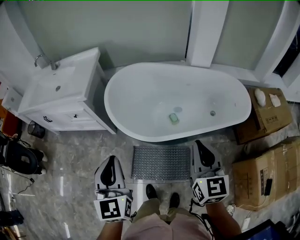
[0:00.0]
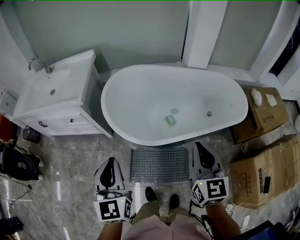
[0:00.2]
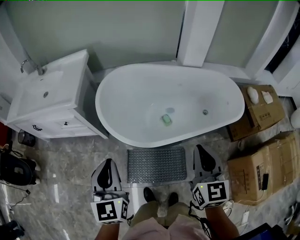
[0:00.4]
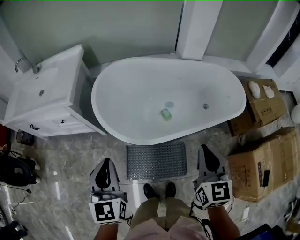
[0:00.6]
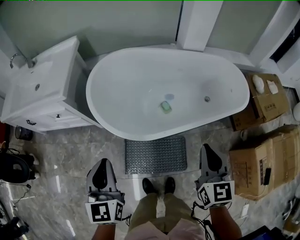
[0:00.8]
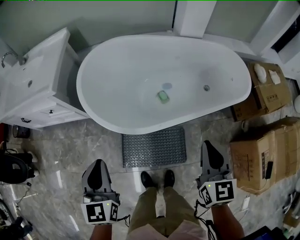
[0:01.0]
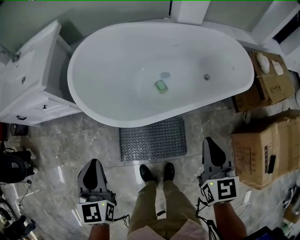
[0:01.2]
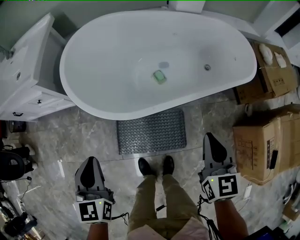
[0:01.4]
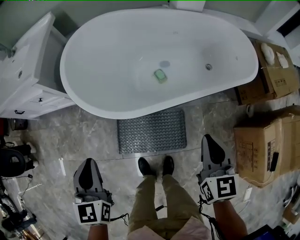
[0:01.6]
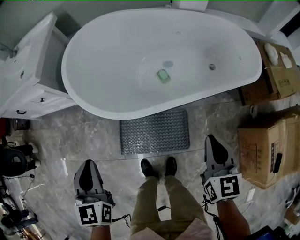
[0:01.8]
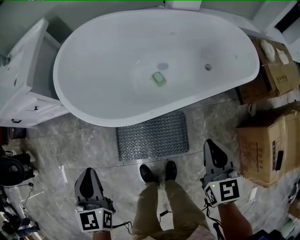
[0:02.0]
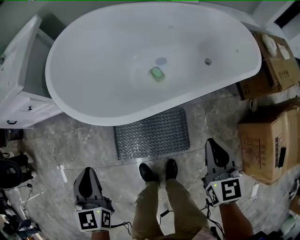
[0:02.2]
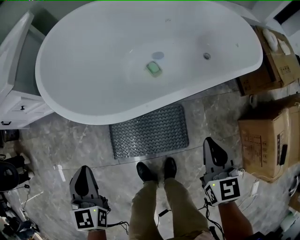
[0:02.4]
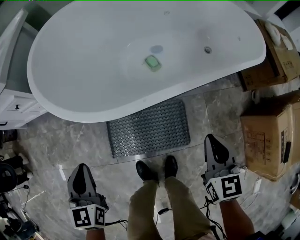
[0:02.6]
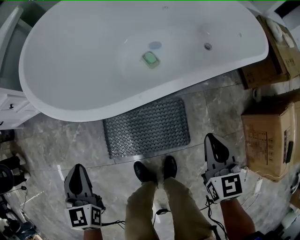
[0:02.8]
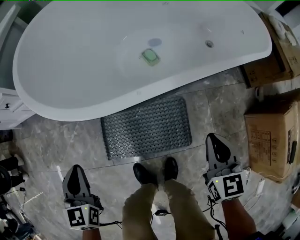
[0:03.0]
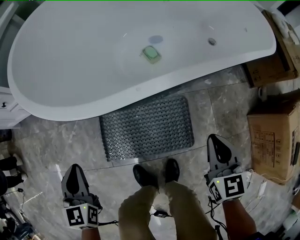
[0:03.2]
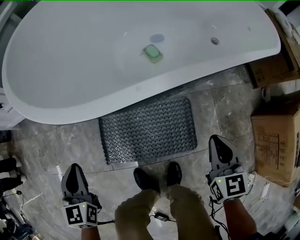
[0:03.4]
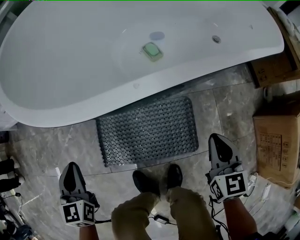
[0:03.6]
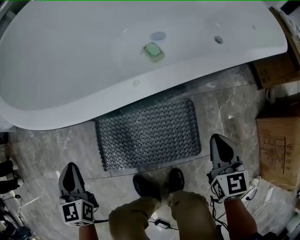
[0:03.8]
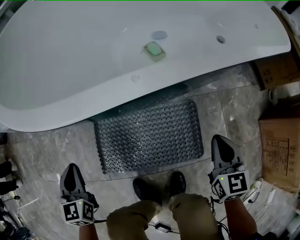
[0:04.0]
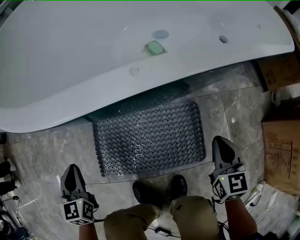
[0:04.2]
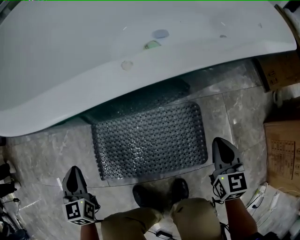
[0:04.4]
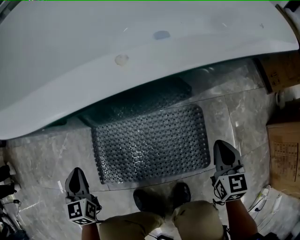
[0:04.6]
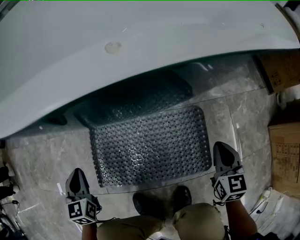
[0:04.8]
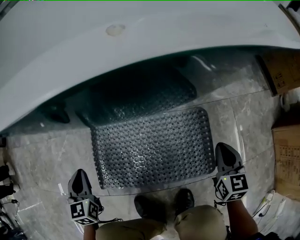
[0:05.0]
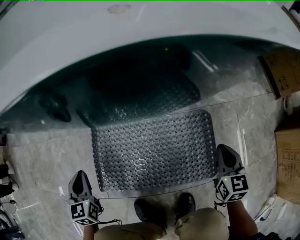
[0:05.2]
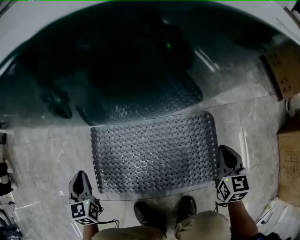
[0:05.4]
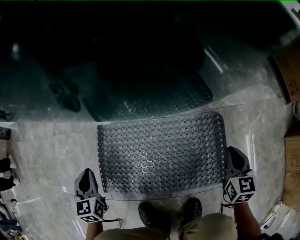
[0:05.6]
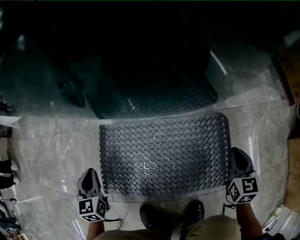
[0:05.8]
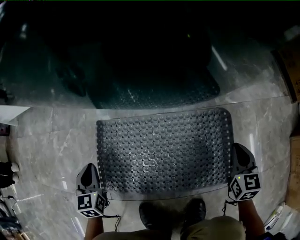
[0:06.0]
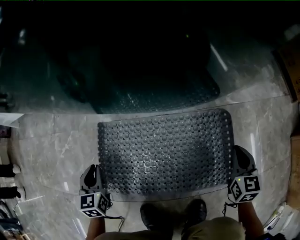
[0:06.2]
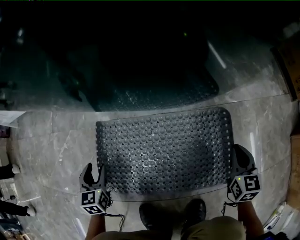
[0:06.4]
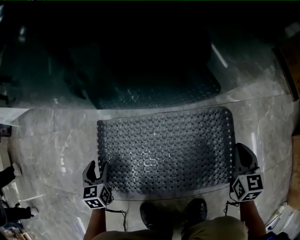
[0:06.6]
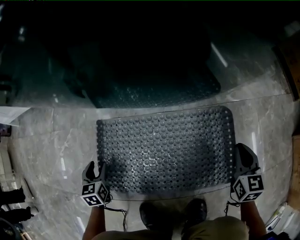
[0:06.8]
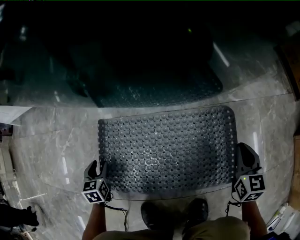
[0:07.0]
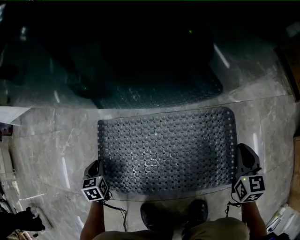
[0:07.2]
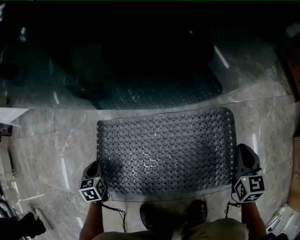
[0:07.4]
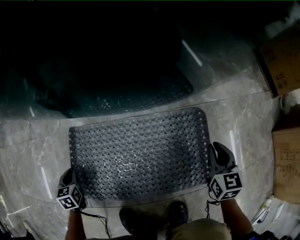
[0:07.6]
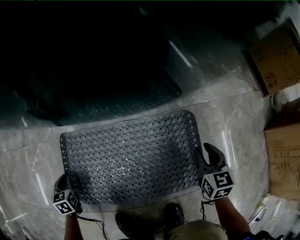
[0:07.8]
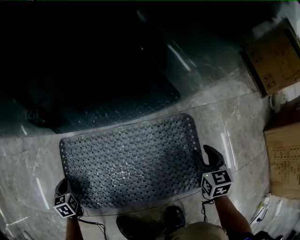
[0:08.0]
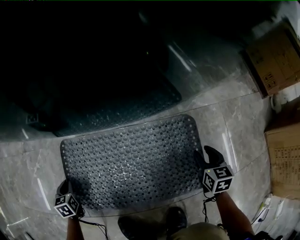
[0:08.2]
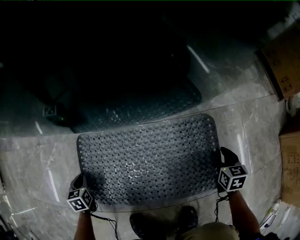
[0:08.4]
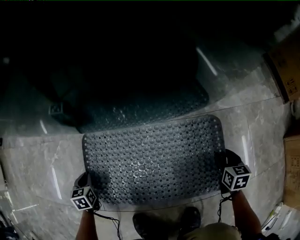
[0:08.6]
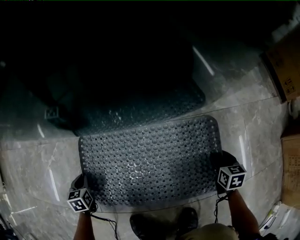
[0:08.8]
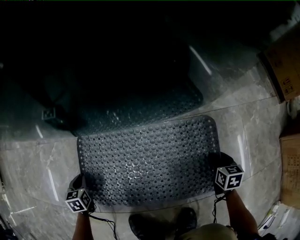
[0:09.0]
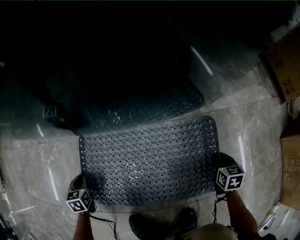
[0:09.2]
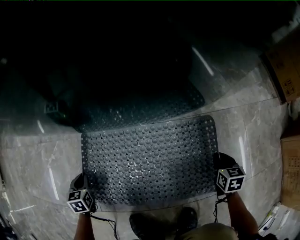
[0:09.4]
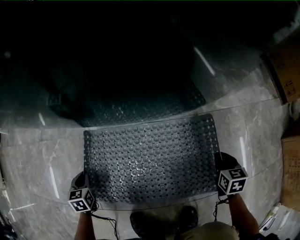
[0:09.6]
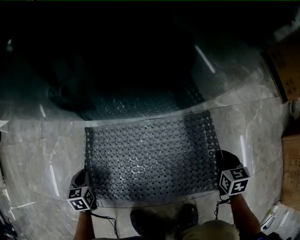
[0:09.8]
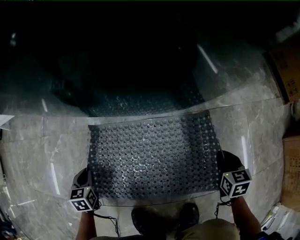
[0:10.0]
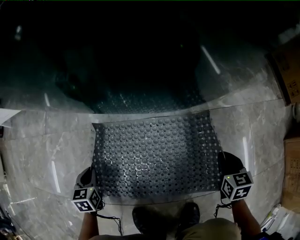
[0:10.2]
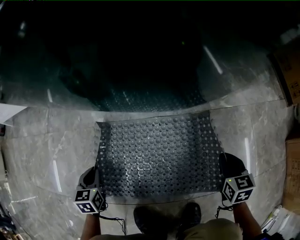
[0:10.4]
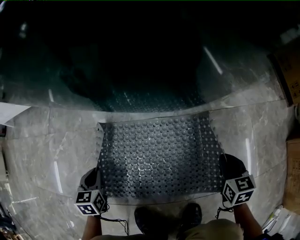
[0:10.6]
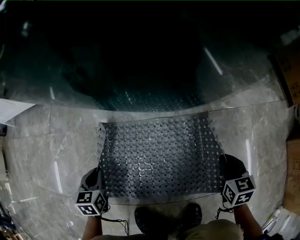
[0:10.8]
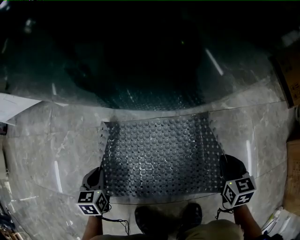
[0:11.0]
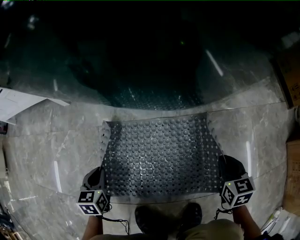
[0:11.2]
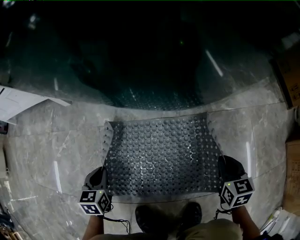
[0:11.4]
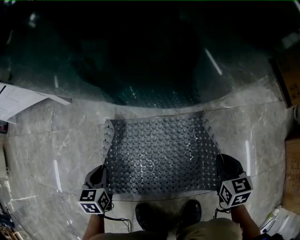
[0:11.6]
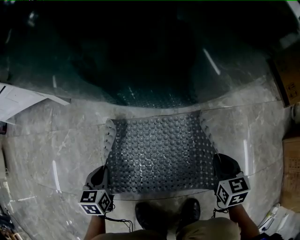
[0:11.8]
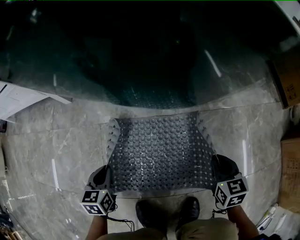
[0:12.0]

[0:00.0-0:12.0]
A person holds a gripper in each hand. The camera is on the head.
0.0 to 1.6 s: The right gripper is displaced downward and to the right by some 20 cm. The left gripper heads downward, covering approximately 20 cm.
1.6 to 3.0 s: The grippers both shift downward by approximately 25 cm.
3.0 to 4.4 s: The two grippers go about 25 cm downward.
4.4 to 6.0 s: Both grippers move downward, roughly 15 cm.
6.0 to 7.6 s: The left gripper heads downward and to the left, covering about 10 cm, and opens and closes again.
7.6 to 9.0 s: The right gripper shifts some 10 cm downward, changes its angle by roughly 20 degrees, and opens up.
9.0 to 10.4 s: The left gripper travels upward and to the right by roughly 10 cm, while the right gripper is displaced upward by approximately 10 cm, and closes its fingers.
10.4 to 12.0 s: The left gripper shifts by about 5 cm; the right gripper is displaced upward by some 5 cm.

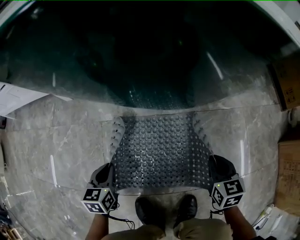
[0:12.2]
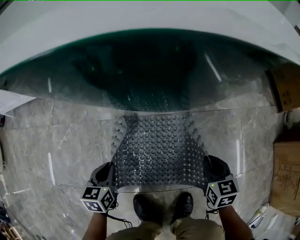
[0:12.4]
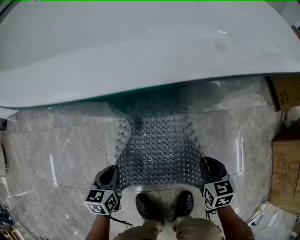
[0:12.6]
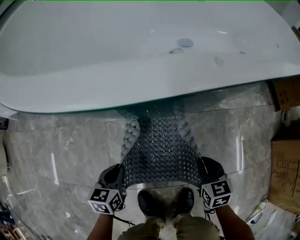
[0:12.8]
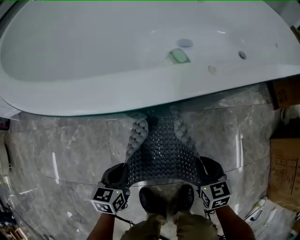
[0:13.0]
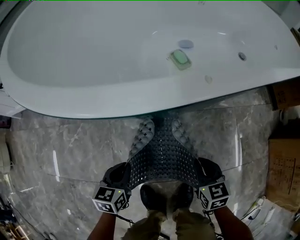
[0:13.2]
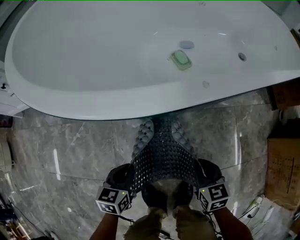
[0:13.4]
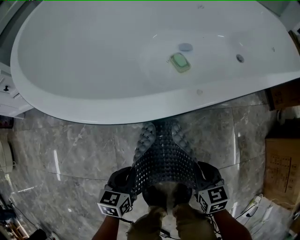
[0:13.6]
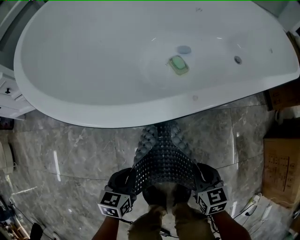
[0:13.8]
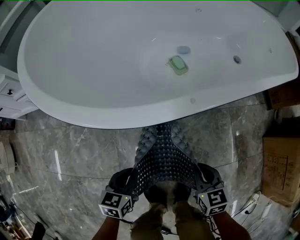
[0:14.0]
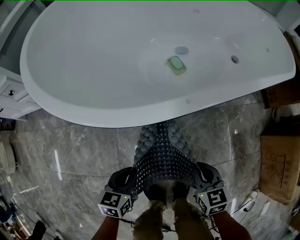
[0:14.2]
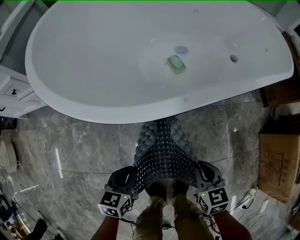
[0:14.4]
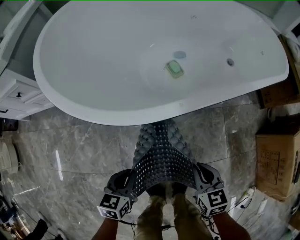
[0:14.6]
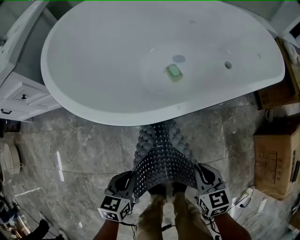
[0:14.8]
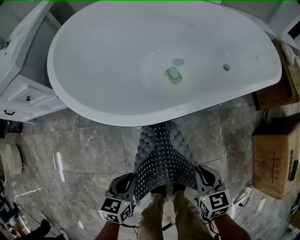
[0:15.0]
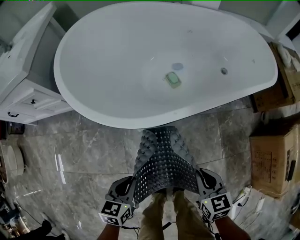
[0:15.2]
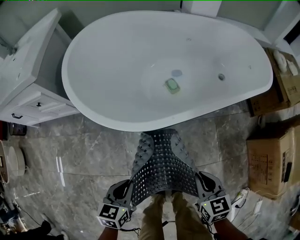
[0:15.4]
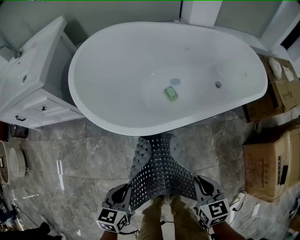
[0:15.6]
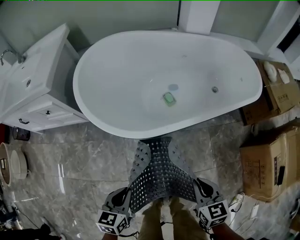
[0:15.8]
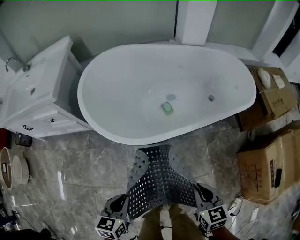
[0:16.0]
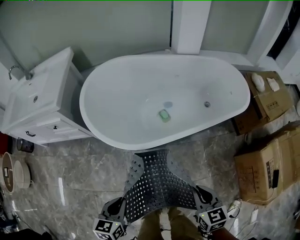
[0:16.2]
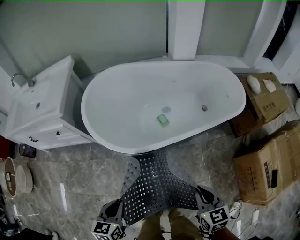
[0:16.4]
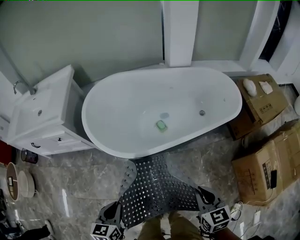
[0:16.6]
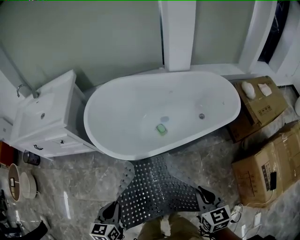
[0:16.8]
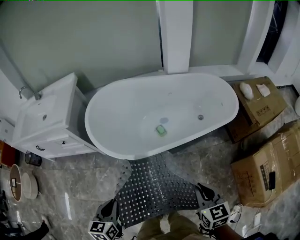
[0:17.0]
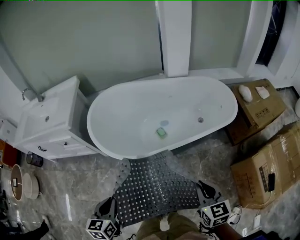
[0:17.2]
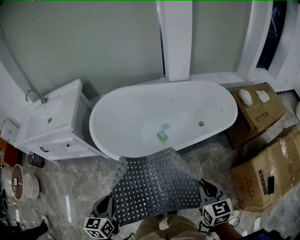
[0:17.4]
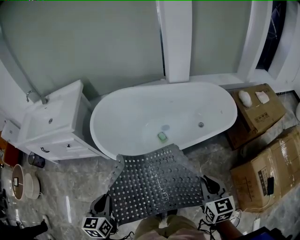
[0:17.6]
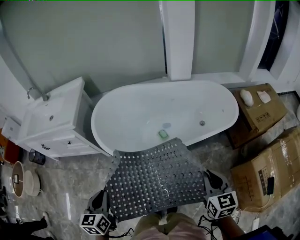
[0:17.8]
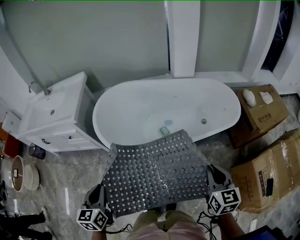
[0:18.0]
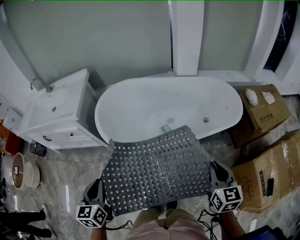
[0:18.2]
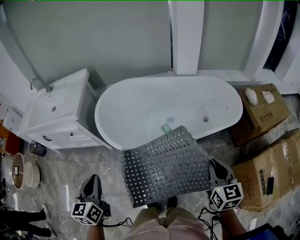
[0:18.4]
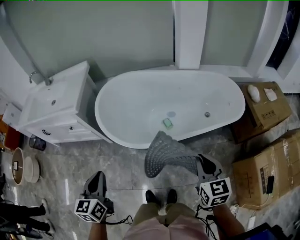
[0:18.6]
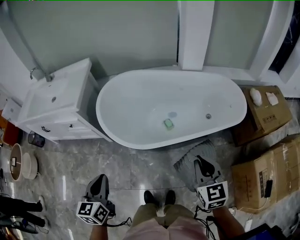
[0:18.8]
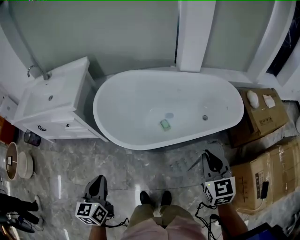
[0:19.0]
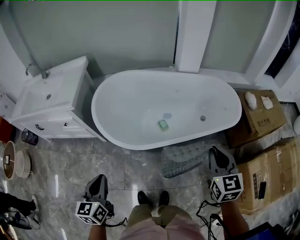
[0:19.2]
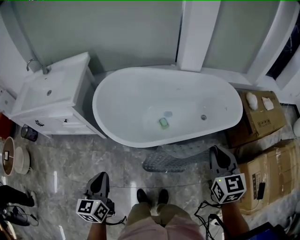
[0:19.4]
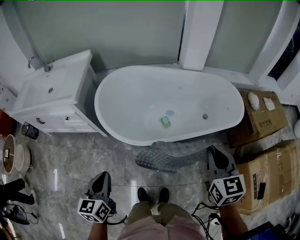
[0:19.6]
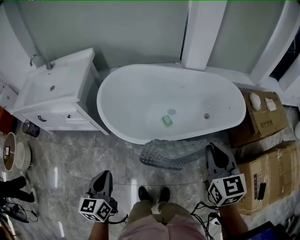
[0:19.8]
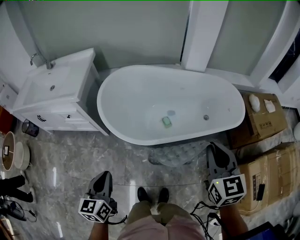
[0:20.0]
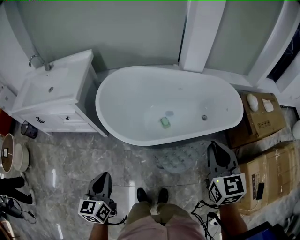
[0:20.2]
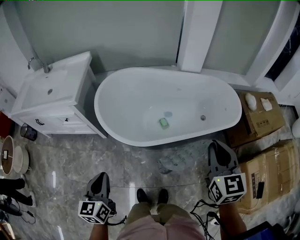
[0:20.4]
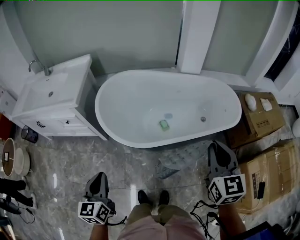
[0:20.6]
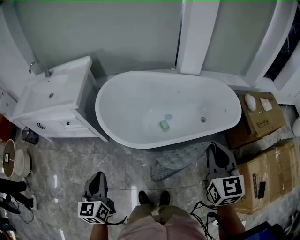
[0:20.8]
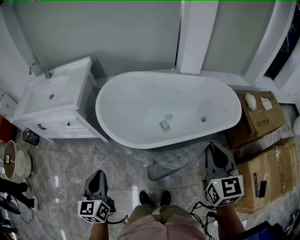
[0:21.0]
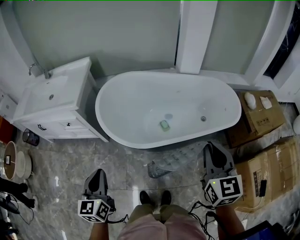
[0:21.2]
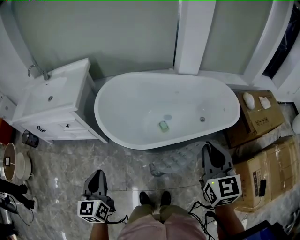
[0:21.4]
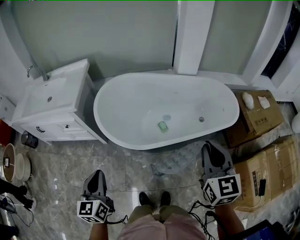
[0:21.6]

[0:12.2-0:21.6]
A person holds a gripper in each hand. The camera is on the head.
12.2 to 13.8 s: The right gripper shifts approximately 15 cm upward and to the left, while the left gripper shifts about 20 cm upward and to the right.
13.8 to 15.4 s: The two grippers go roughly 25 cm upward.
15.4 to 17.0 s: Both grippers travel together upward, about 25 cm.
17.0 to 18.4 s: The right gripper travels upward, forward and to the right by some 10 cm, while the left gripper goes about 15 cm upward and forward.
18.4 to 20.0 s: The right gripper travels to the left, upward and forward by roughly 10 cm. Meanwhile the left gripper ends up about 5 cm from where it was.
20.0 to 21.6 s: The grippers make only small movements.

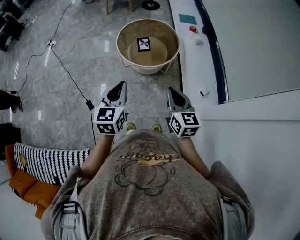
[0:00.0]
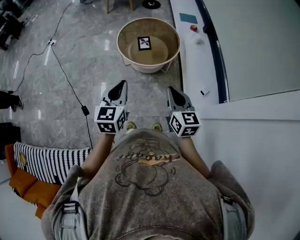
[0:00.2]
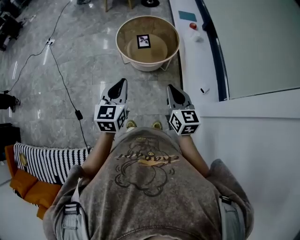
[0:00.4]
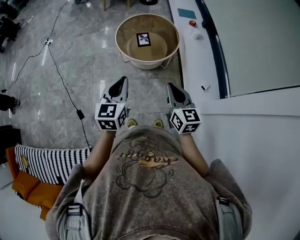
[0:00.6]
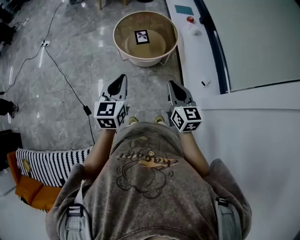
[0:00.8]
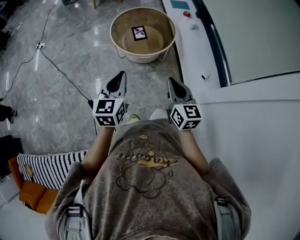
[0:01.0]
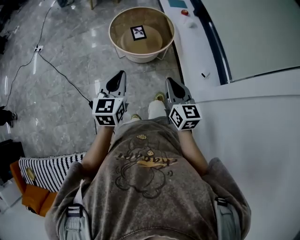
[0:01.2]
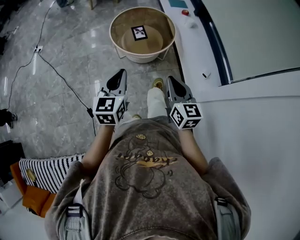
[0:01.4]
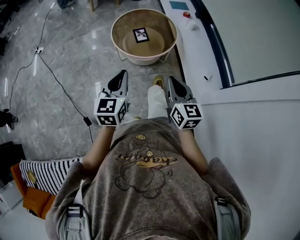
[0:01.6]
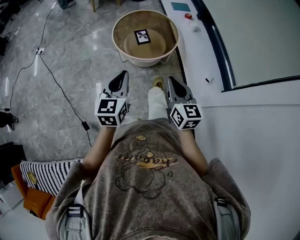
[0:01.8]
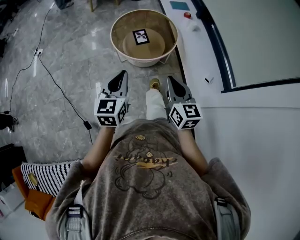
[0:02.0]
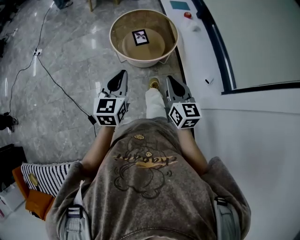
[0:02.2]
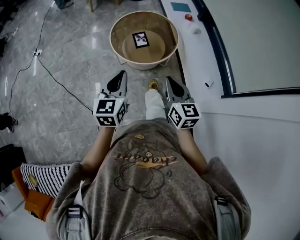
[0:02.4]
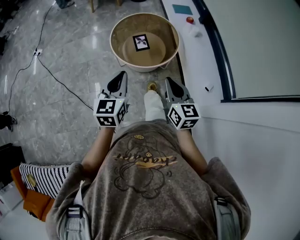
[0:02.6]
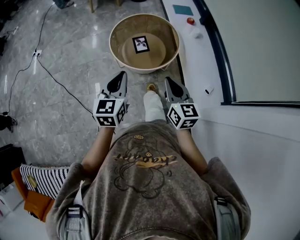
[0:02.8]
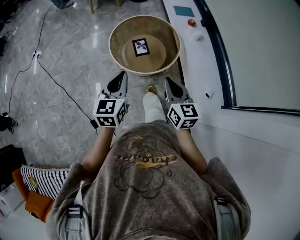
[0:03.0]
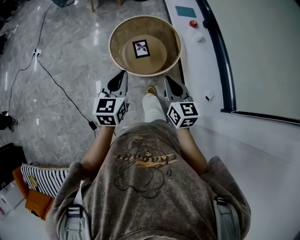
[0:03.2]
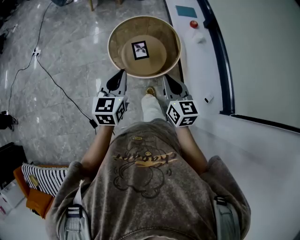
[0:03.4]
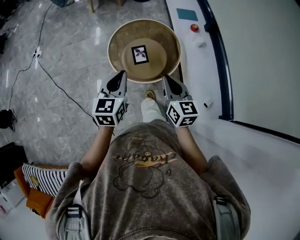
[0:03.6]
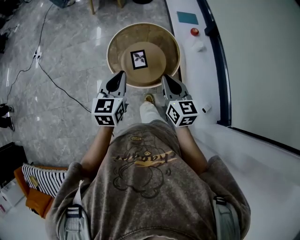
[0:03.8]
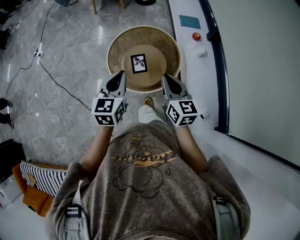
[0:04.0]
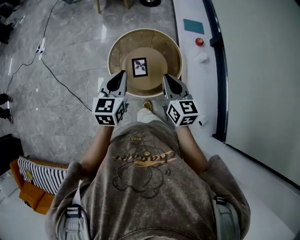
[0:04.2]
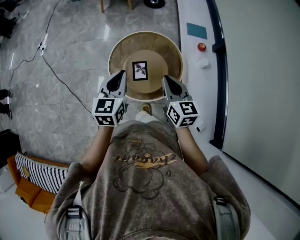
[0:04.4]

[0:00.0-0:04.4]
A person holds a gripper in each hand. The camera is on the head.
0.0 to 1.4 s: The grippers both shift to the left by some 5 cm.
1.4 to 3.0 s: Both grippers travel together forward, some 20 cm.
3.0 to 4.4 s: Both grippers move forward, some 25 cm.
